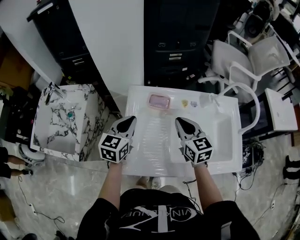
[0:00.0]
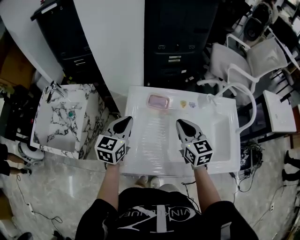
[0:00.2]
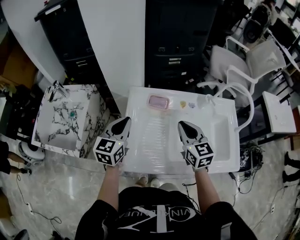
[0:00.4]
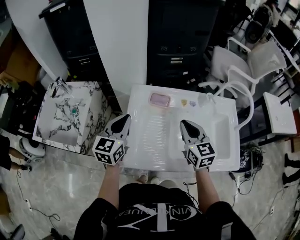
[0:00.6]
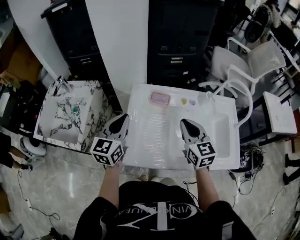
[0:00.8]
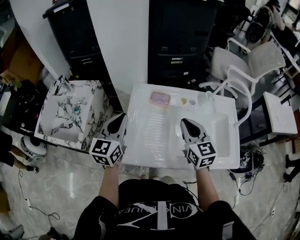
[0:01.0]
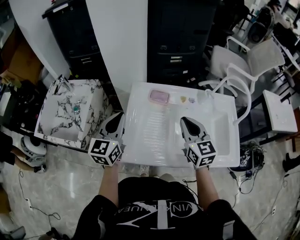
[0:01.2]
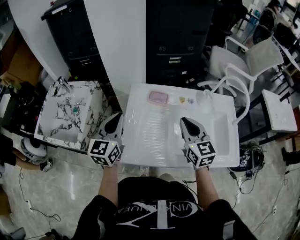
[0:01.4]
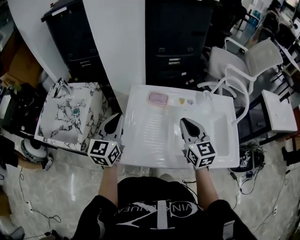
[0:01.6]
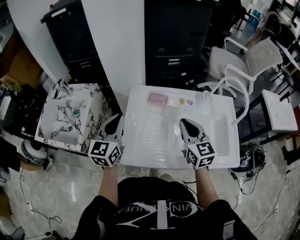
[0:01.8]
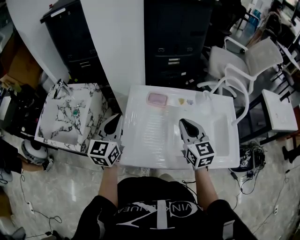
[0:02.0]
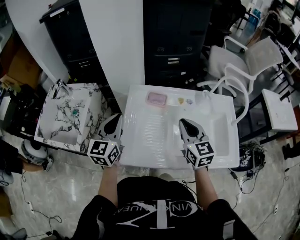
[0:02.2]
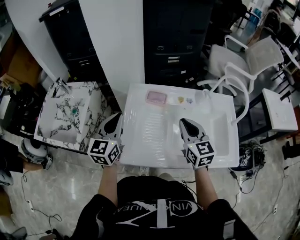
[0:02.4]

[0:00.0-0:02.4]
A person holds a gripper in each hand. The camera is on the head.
0:00.0 to 0:01.2: The left gripper goes about 10 cm upward and backward. Meanwhile the right gripper shifts approximately 10 cm backward and upward.
0:01.2 to 0:02.4: The grippers move only a little.

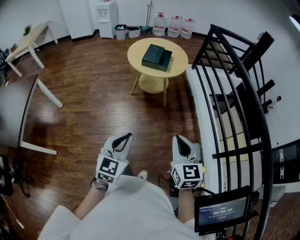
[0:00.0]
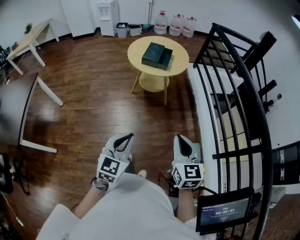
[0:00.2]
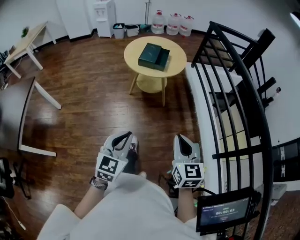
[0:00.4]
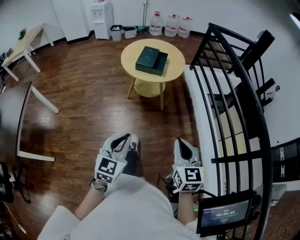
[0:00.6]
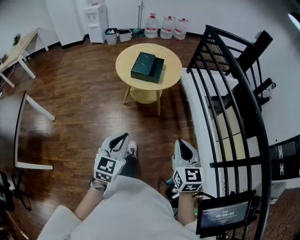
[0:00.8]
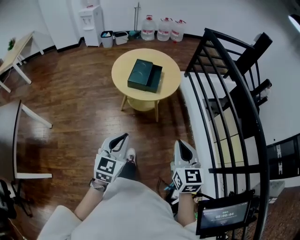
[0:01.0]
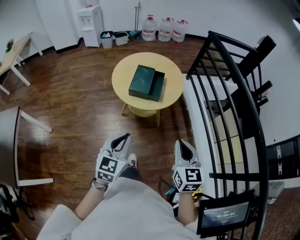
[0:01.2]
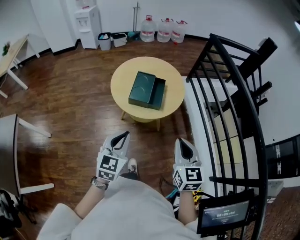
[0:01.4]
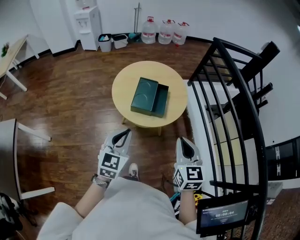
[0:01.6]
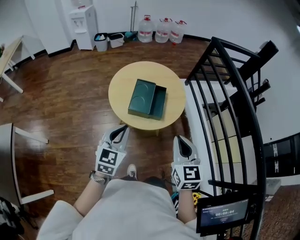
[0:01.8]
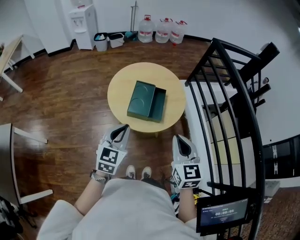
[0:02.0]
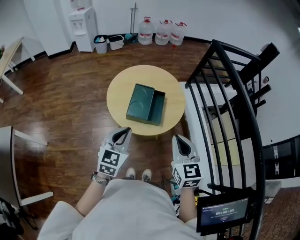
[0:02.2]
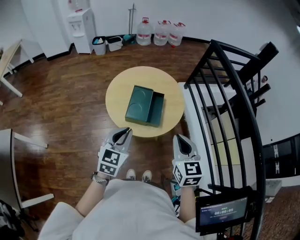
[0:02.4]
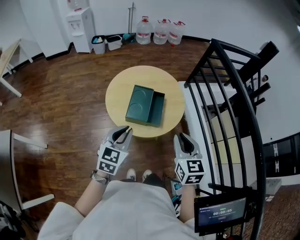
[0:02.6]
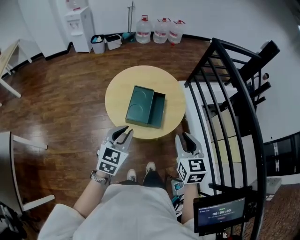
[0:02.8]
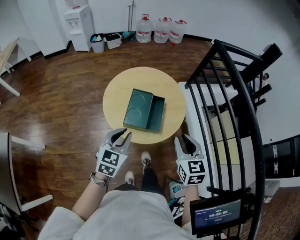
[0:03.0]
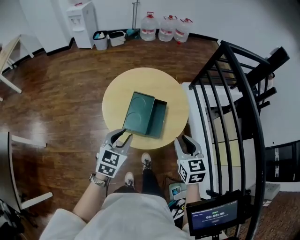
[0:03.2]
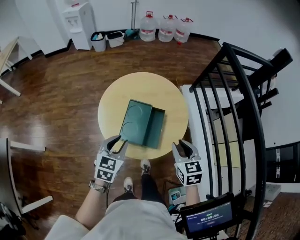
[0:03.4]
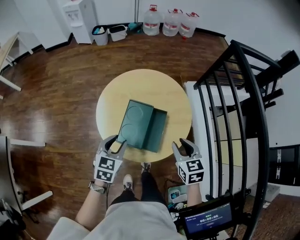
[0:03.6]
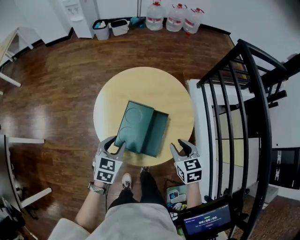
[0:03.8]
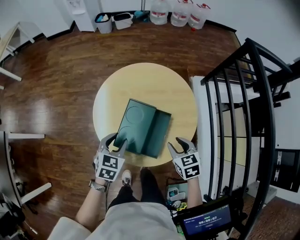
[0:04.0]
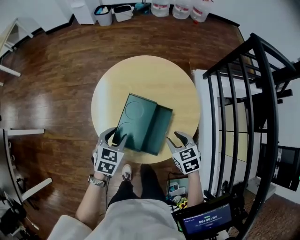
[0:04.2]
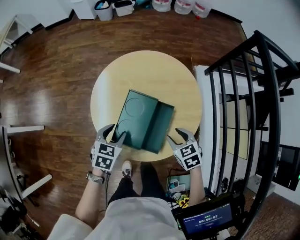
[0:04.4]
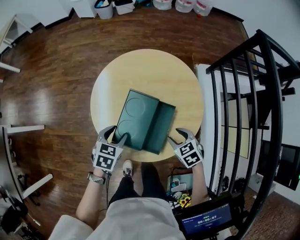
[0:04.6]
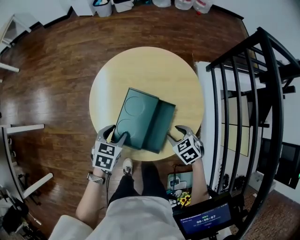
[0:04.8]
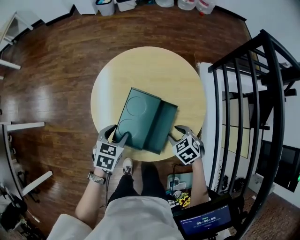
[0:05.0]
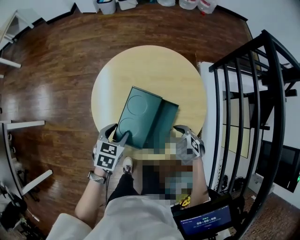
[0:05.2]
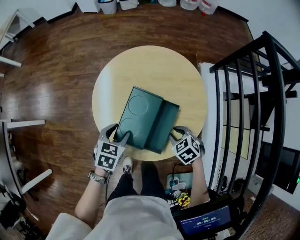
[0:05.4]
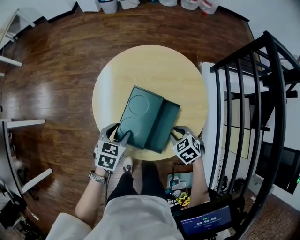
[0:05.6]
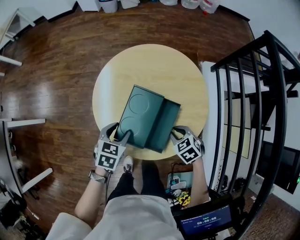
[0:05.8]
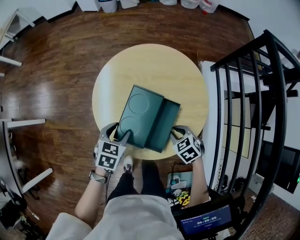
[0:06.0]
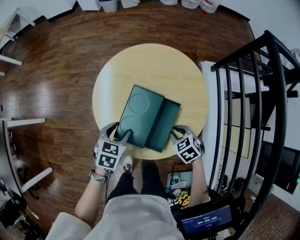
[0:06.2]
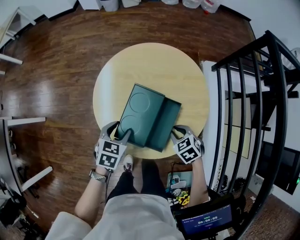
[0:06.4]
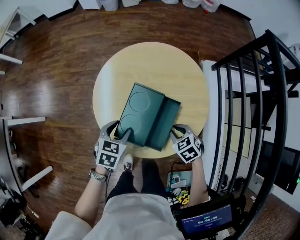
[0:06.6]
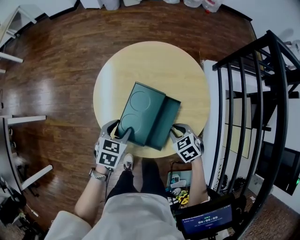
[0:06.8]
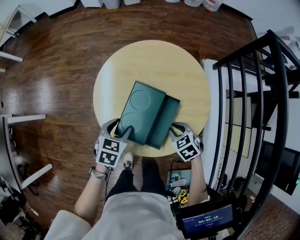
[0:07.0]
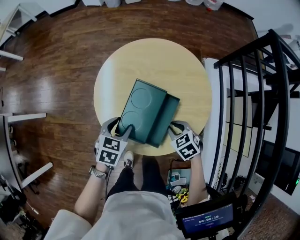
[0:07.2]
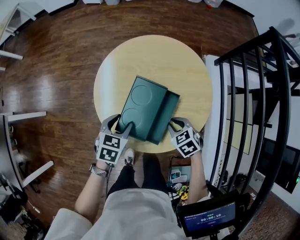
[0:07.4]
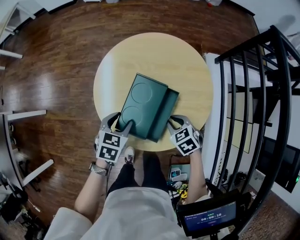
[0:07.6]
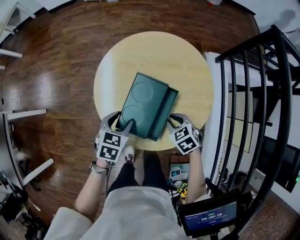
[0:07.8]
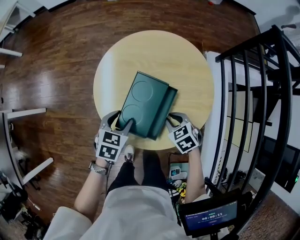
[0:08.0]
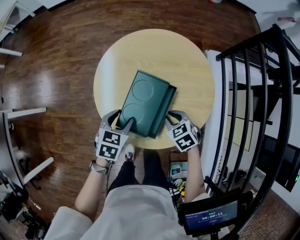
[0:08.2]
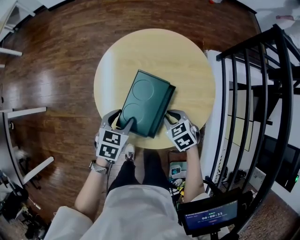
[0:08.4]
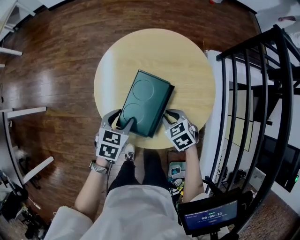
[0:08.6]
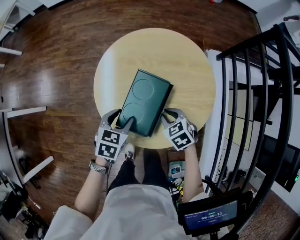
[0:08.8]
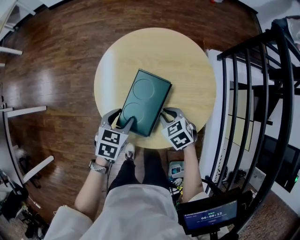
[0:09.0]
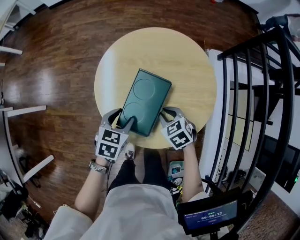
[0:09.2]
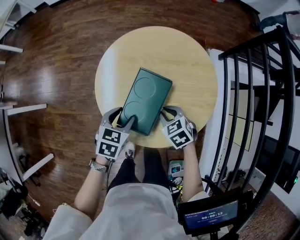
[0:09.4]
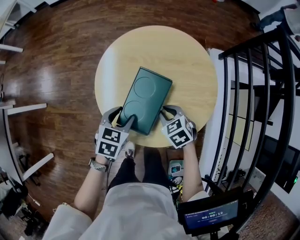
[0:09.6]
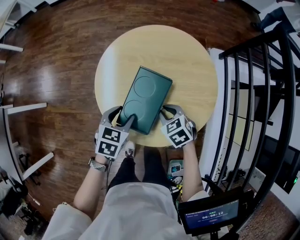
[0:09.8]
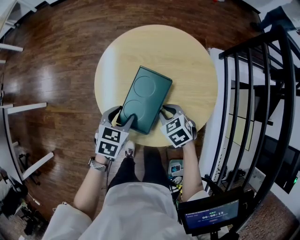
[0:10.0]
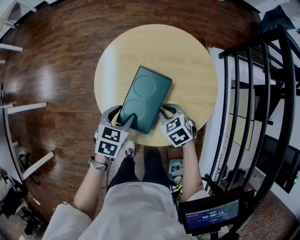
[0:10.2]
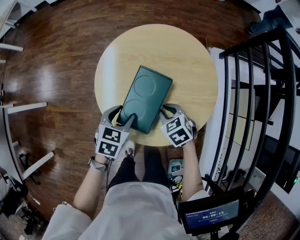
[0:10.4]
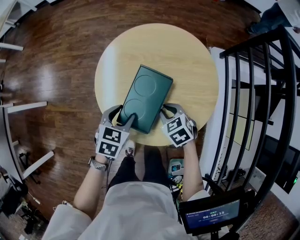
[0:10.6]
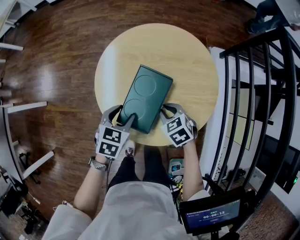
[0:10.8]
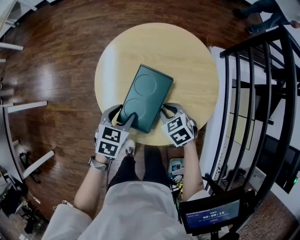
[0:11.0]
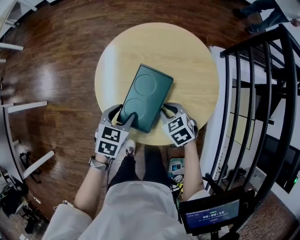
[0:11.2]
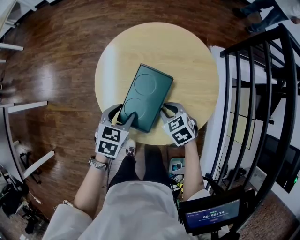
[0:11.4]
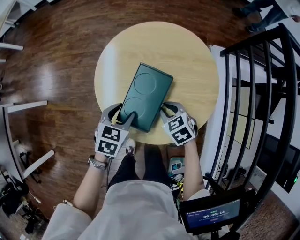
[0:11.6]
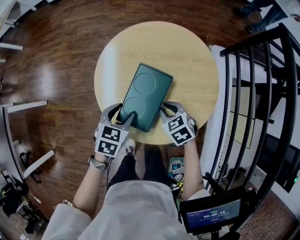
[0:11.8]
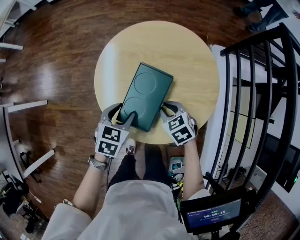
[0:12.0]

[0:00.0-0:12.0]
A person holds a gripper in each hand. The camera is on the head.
0:00.0 to 0:01.6: The grippers both shift forward by some 35 cm.
0:01.6 to 0:03.0: Both grippers travel together forward, some 10 cm. The right gripper opens up.
0:03.0 to 0:04.4: The grippers both shift downward and forward by some 25 cm. The left gripper swivels approximately 30 degrees, and opens its fingers. The right gripper rotates roughly 40 degrees, and opens.
0:04.4 to 0:06.0: The right gripper closes.
0:06.0 to 0:07.6: The grippers make only small movements.
0:07.6 to 0:09.0: The grippers make only small movements.
0:09.0 to 0:12.0: Neither gripper changes place.

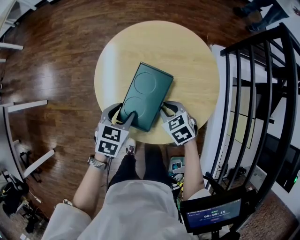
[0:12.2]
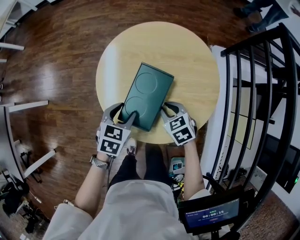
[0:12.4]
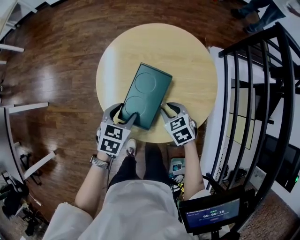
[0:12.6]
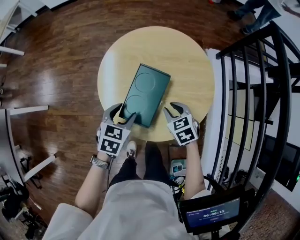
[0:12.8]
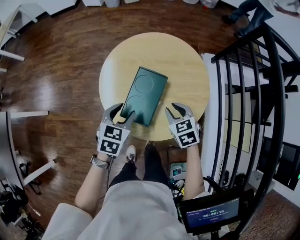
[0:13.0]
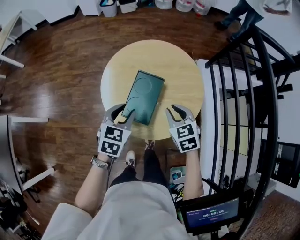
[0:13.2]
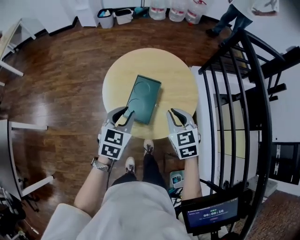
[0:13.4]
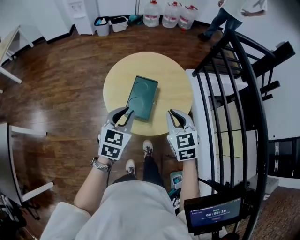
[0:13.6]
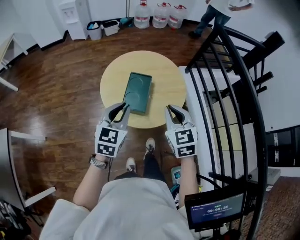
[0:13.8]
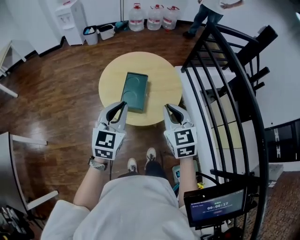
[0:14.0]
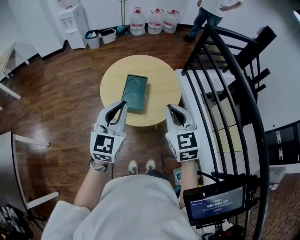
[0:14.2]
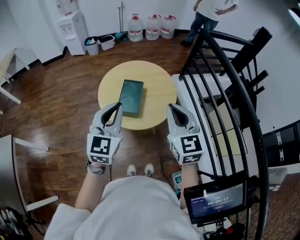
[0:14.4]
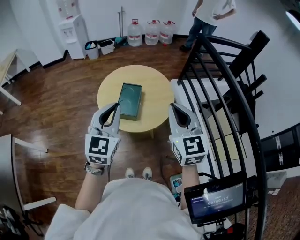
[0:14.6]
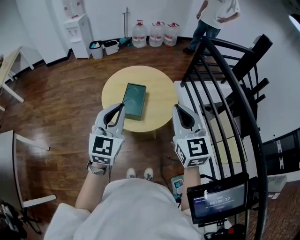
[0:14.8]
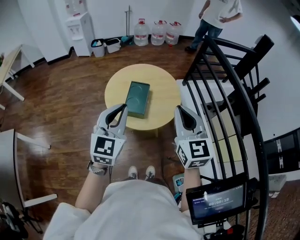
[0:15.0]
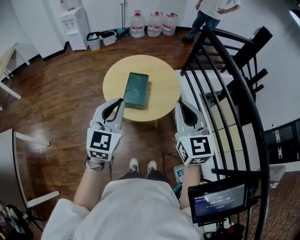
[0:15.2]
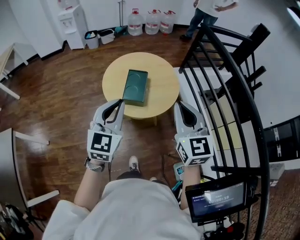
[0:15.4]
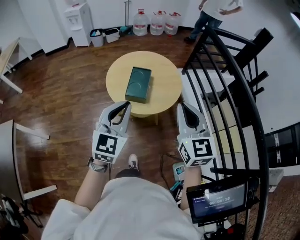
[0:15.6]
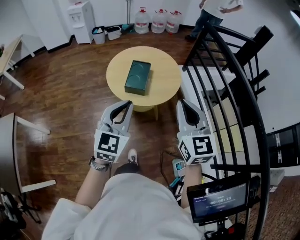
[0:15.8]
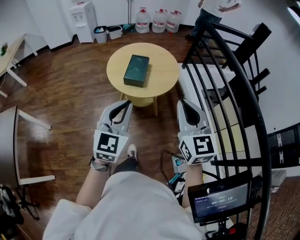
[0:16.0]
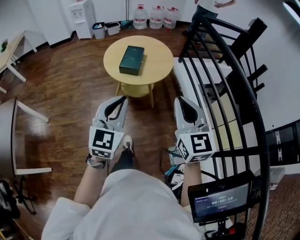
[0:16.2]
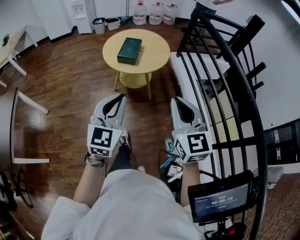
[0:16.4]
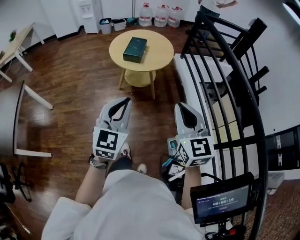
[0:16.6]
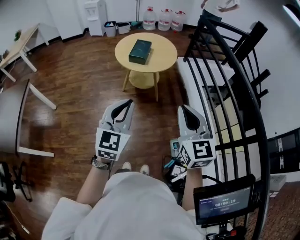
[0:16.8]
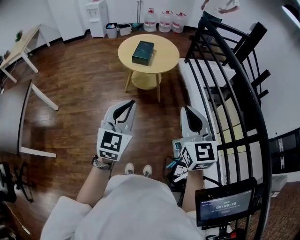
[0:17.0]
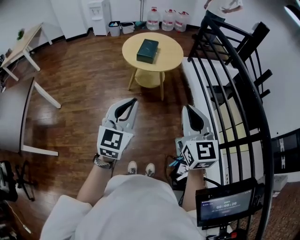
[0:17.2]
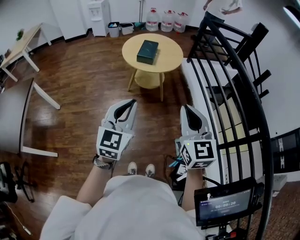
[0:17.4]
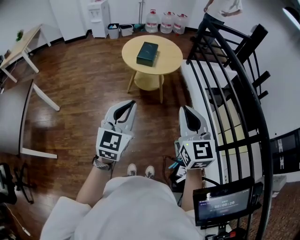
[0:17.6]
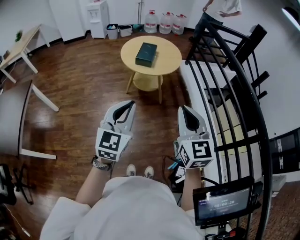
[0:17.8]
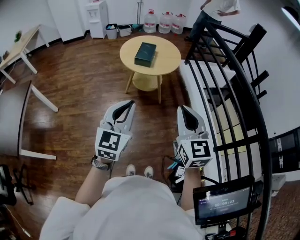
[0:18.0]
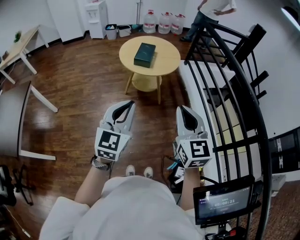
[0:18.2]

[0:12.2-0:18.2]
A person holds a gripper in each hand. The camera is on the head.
0:12.2 to 0:13.8: The grippers both shift upward by about 25 cm. The left gripper tilts its fingers about 30 degrees upward, and closes. Meanwhile the right gripper rotates roughly 40 degrees.
0:13.8 to 0:15.2: The grippers both shift upward and backward by roughly 15 cm. The right gripper changes its angle by approximately 20 degrees.
0:15.2 to 0:16.6: The grippers both shift backward by some 30 cm.
0:16.6 to 0:18.2: The two grippers go some 5 cm to the left.

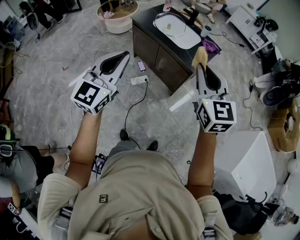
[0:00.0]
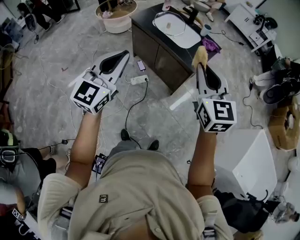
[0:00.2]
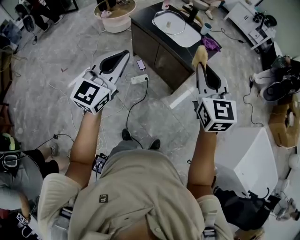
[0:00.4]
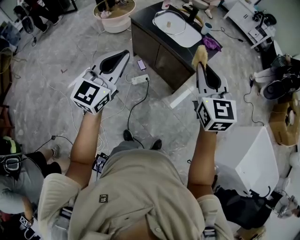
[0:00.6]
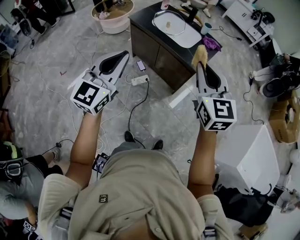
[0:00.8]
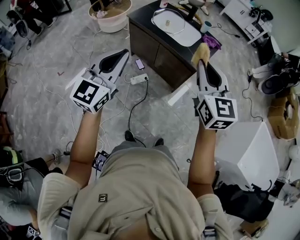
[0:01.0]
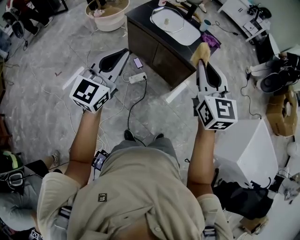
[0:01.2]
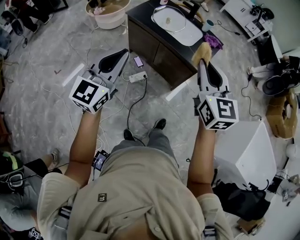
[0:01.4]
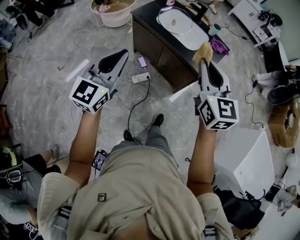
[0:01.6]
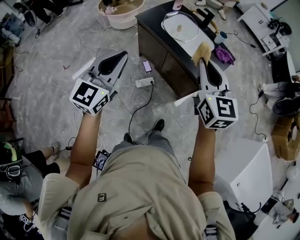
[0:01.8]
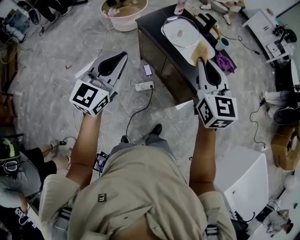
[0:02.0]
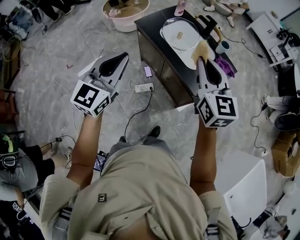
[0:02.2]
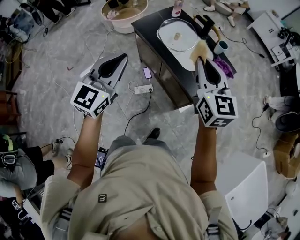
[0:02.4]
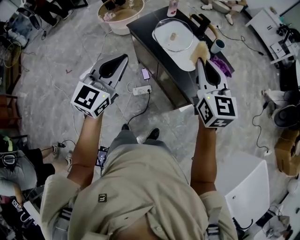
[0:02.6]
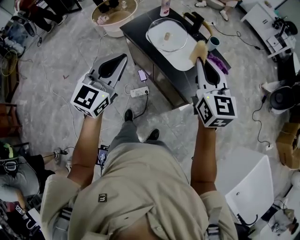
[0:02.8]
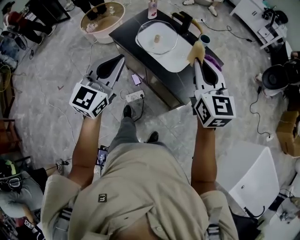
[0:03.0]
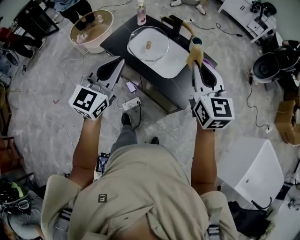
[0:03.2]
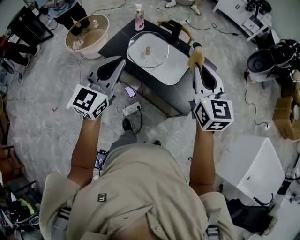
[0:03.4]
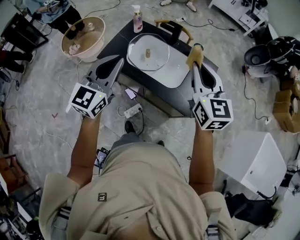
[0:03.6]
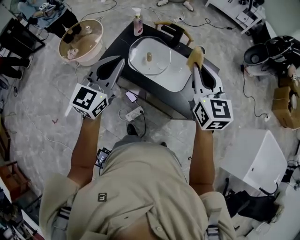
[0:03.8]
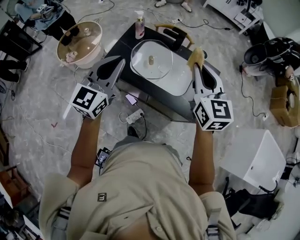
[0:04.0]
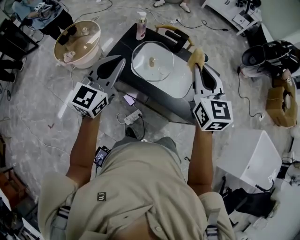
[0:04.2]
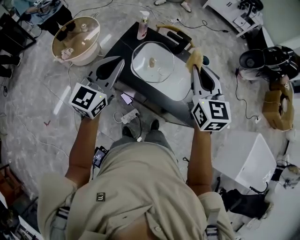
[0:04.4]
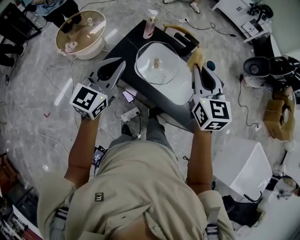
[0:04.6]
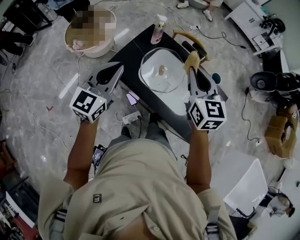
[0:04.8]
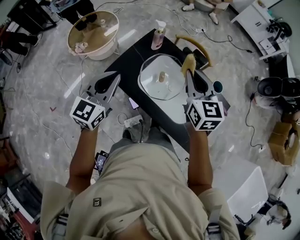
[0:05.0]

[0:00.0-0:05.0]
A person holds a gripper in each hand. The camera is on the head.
0:00.0 to 0:01.6: The left gripper shifts roughly 15 cm forward, to the left and downward. Meanwhile the right gripper moves forward and to the left, roughly 15 cm.
0:01.6 to 0:03.4: The grippers both shift forward and to the right by about 35 cm.
0:03.4 to 0:05.0: The right gripper moves forward and to the left, some 30 cm. The left gripper moves forward, to the left and downward, some 30 cm.
